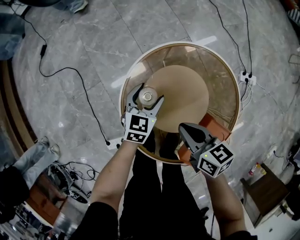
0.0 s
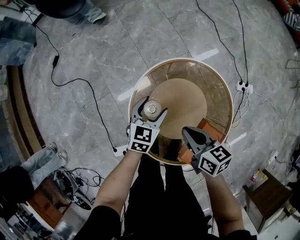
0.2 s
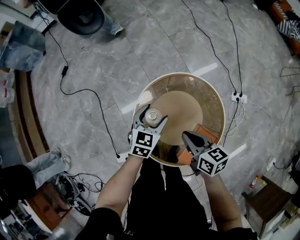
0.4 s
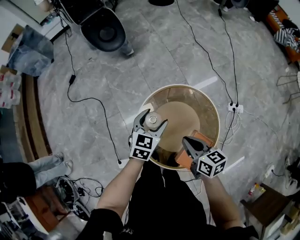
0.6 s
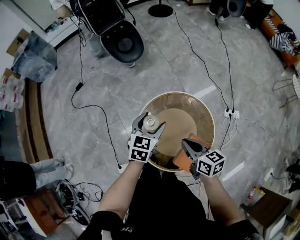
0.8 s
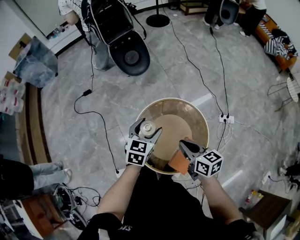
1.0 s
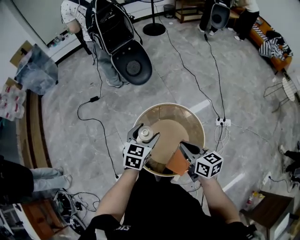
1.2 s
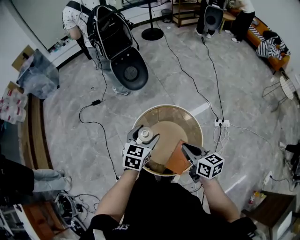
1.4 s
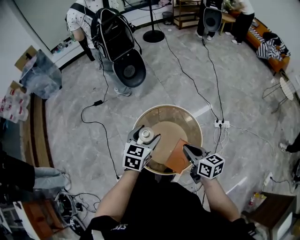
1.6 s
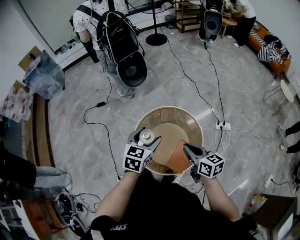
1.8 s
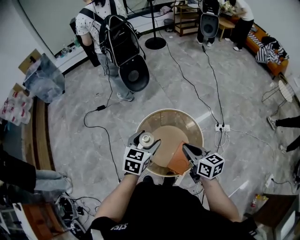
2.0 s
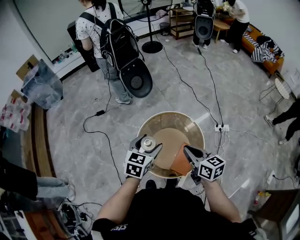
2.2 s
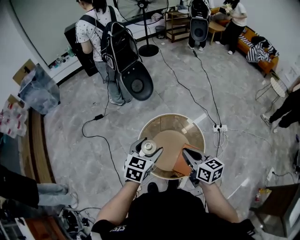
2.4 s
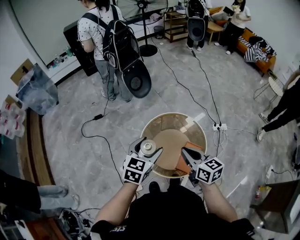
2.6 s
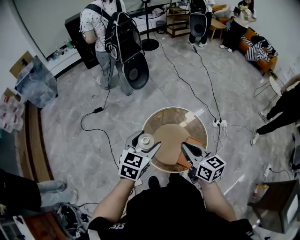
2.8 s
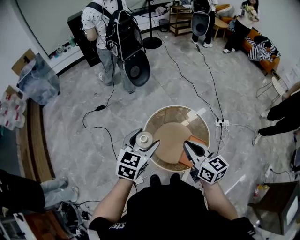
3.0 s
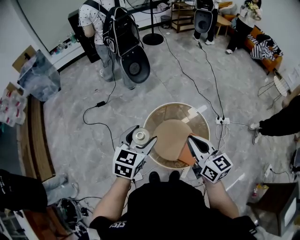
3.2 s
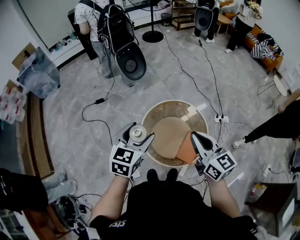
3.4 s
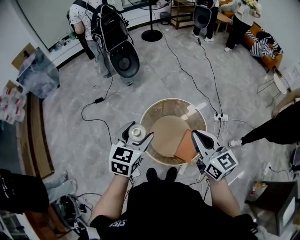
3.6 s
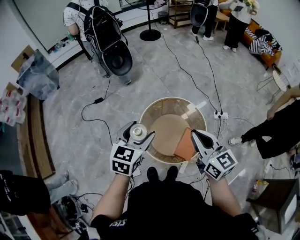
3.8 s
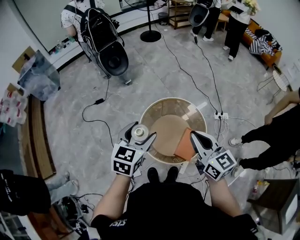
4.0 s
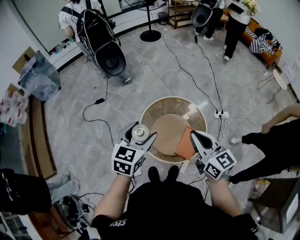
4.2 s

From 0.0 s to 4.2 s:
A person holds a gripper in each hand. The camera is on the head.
From 0.0 s to 1.4 s: Both grippers move upward, approximately 40 cm.
From 1.4 s to 2.8 s: The right gripper is displaced to the left, upward and backward by roughly 20 cm, while the left gripper travels to the left, backward and upward by some 20 cm.
From 2.8 s to 4.2 s: The right gripper goes some 5 cm to the right.

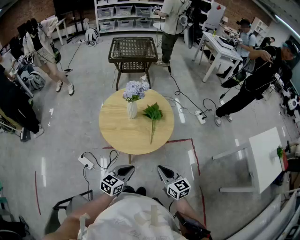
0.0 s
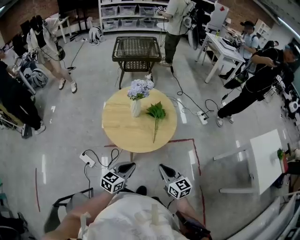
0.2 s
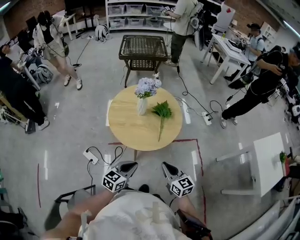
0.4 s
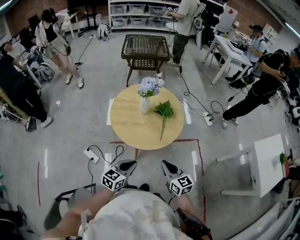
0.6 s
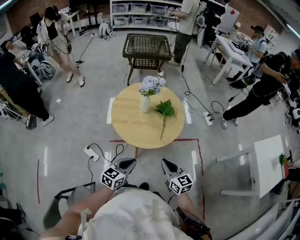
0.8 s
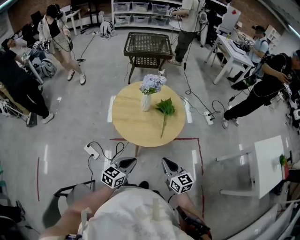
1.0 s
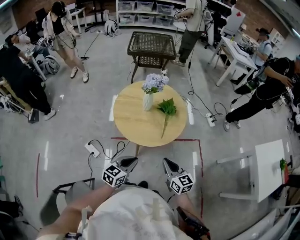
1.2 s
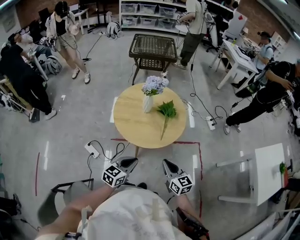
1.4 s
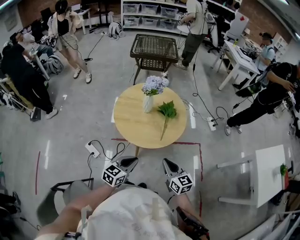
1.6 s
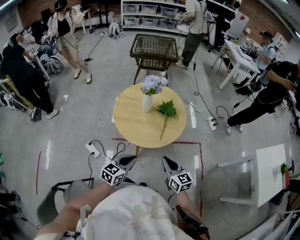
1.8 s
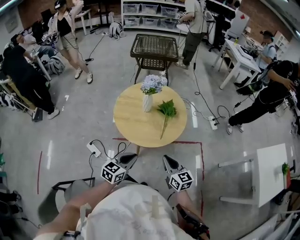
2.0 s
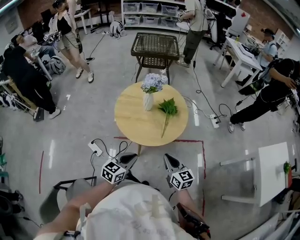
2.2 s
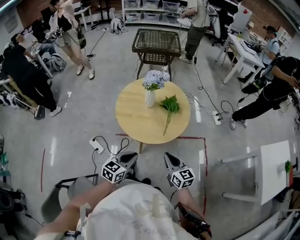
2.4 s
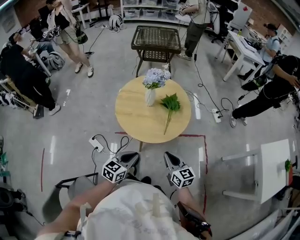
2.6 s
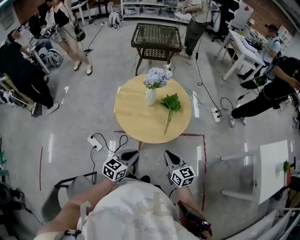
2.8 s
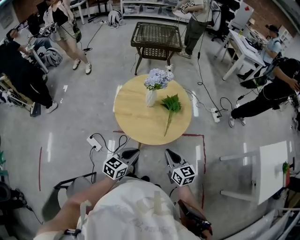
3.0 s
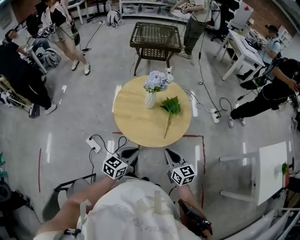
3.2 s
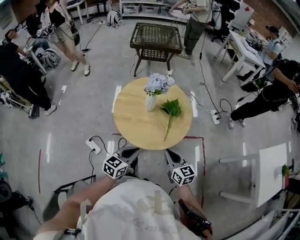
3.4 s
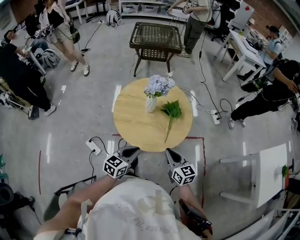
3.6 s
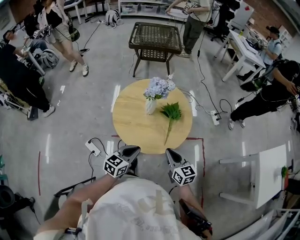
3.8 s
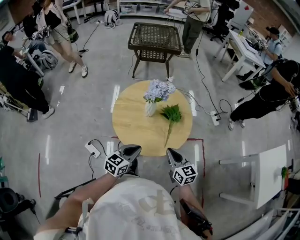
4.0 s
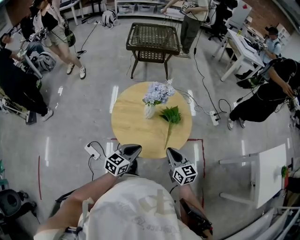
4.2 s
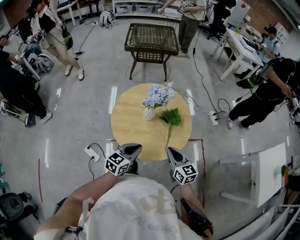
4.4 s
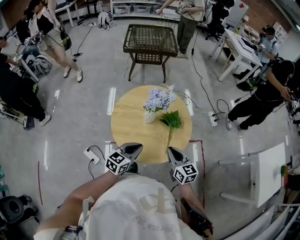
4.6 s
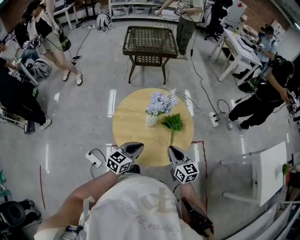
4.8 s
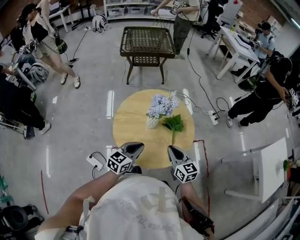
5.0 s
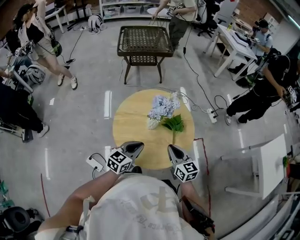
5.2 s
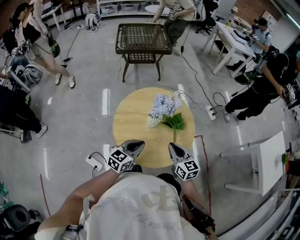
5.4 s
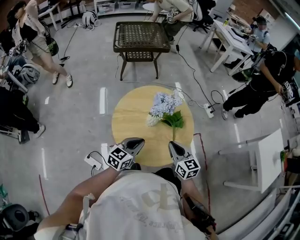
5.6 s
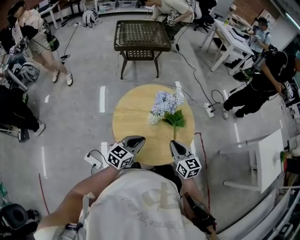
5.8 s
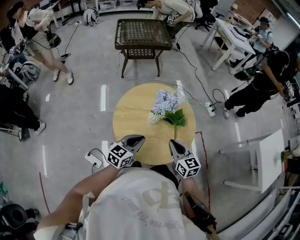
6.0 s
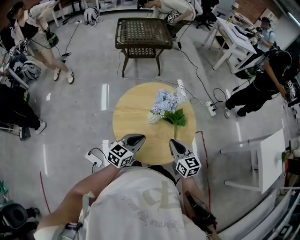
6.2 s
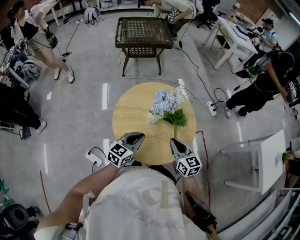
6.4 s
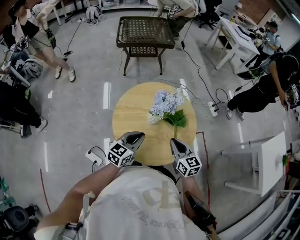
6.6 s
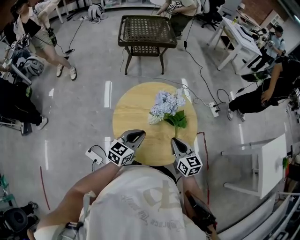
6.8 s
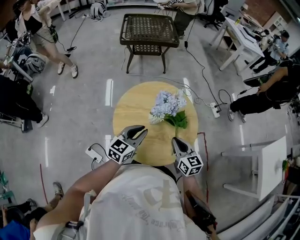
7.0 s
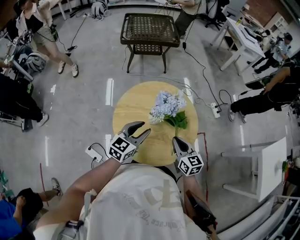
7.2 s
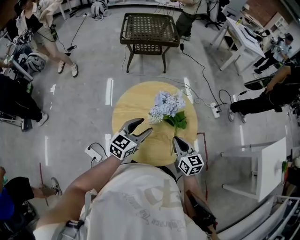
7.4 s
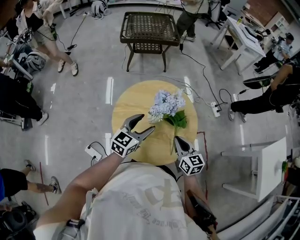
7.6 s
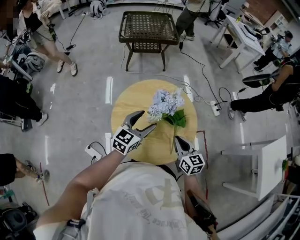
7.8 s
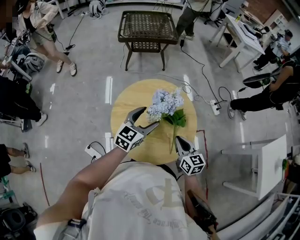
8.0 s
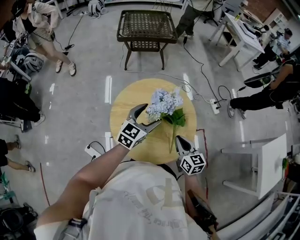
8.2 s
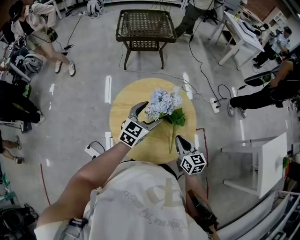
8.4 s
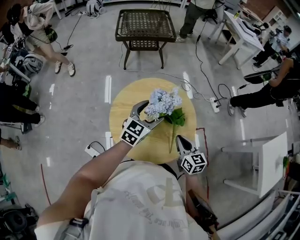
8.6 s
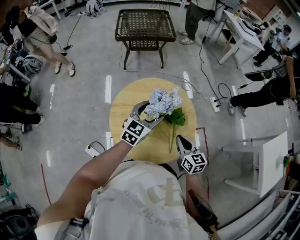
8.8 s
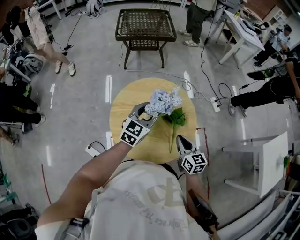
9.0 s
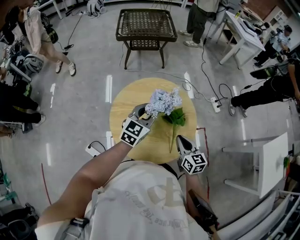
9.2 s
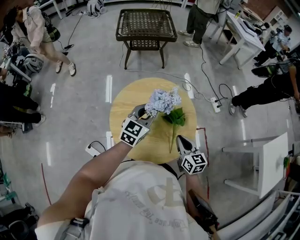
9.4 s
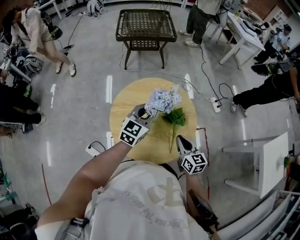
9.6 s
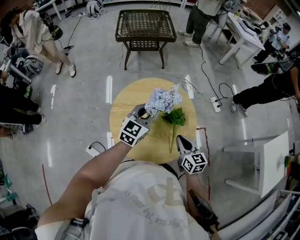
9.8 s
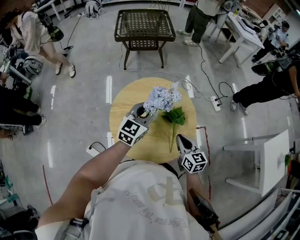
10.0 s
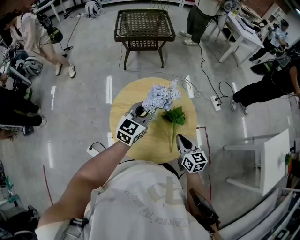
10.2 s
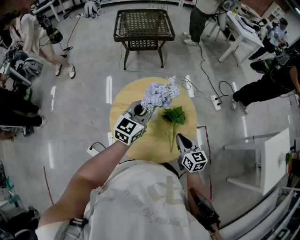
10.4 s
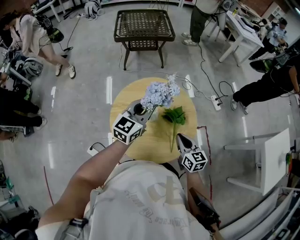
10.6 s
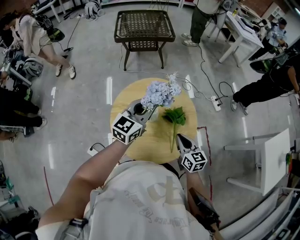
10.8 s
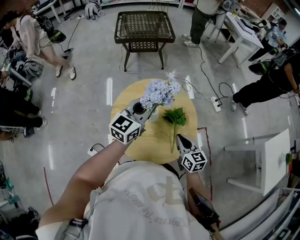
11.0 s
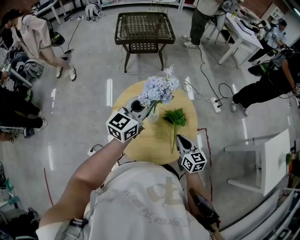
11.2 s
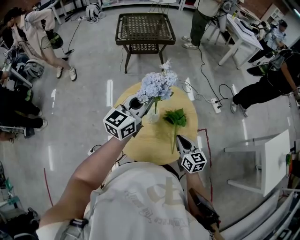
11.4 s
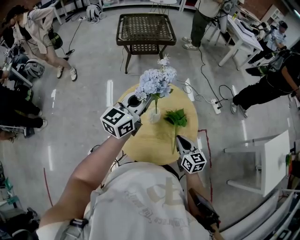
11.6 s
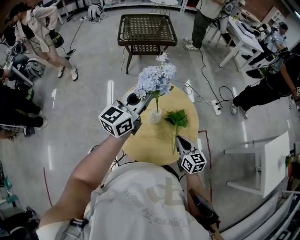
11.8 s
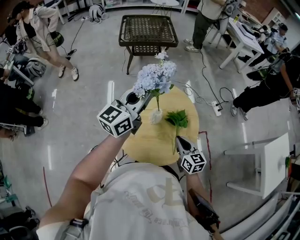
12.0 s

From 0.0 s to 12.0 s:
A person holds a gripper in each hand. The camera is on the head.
From 0.0 s to 1.6 s: The grippers move only a little.
From 1.6 s to 3.0 s: The right gripper heads forward, covering approximately 5 cm; the left gripper moves about 5 cm.
From 3.0 s to 4.4 s: Both grippers travel together forward, approximately 15 cm.
From 4.4 s to 6.0 s: The right gripper is displaced to the left and forward by some 10 cm. Meanwhile the left gripper heads forward and to the left, covering approximately 10 cm.
From 6.0 s to 7.6 s: The right gripper shifts by roughly 5 cm. Meanwhile the left gripper goes approximately 10 cm forward, and opens its fingers.
From 7.6 s to 9.0 s: The left gripper is displaced forward by roughly 5 cm.
From 9.0 s to 10.4 s: The left gripper closes up.
From 10.4 s to 12.0 s: The left gripper is displaced upward by roughly 10 cm.

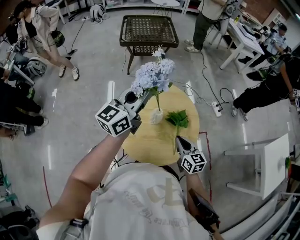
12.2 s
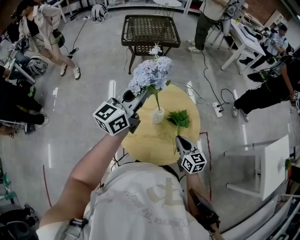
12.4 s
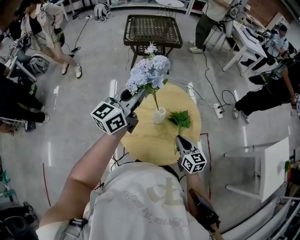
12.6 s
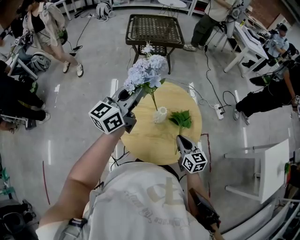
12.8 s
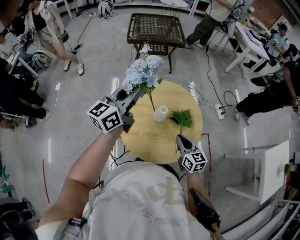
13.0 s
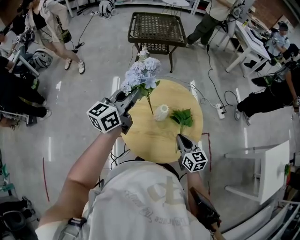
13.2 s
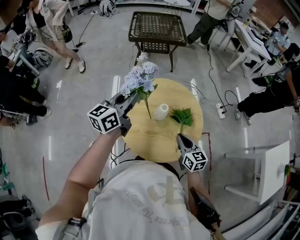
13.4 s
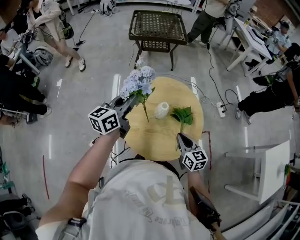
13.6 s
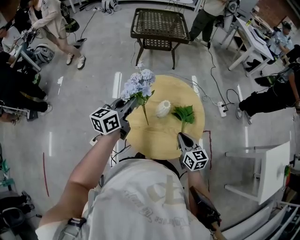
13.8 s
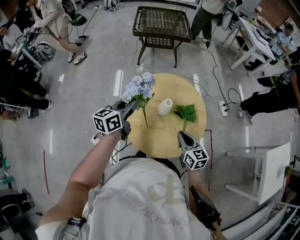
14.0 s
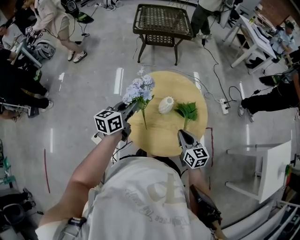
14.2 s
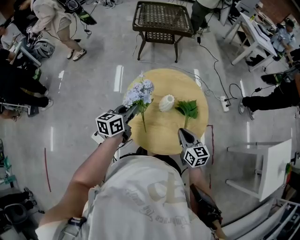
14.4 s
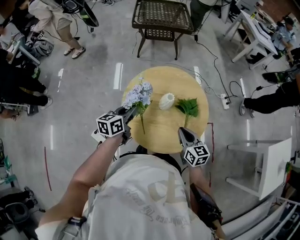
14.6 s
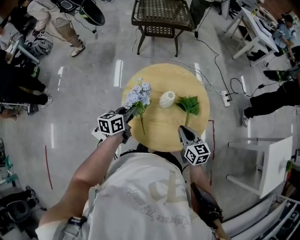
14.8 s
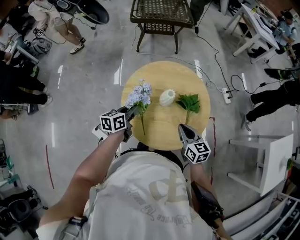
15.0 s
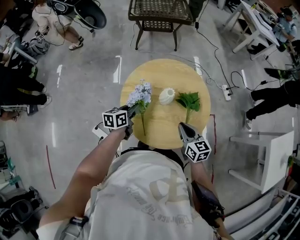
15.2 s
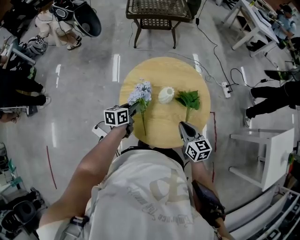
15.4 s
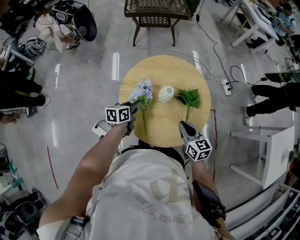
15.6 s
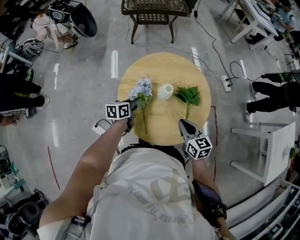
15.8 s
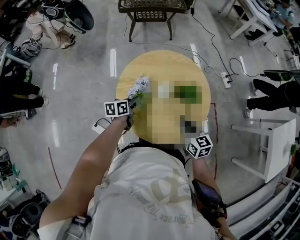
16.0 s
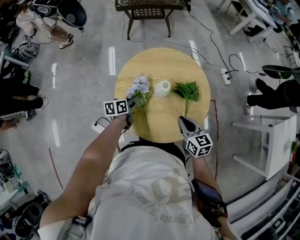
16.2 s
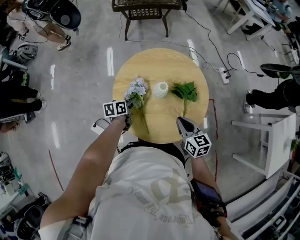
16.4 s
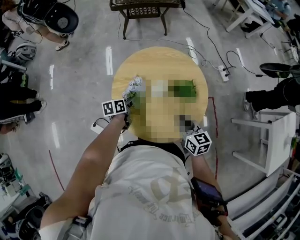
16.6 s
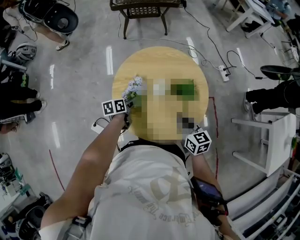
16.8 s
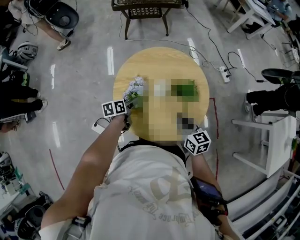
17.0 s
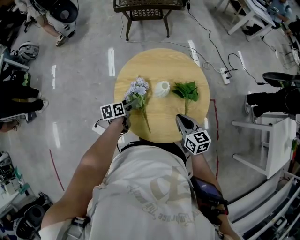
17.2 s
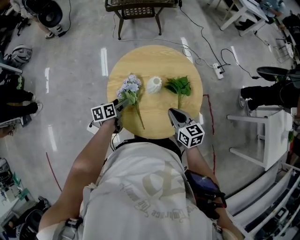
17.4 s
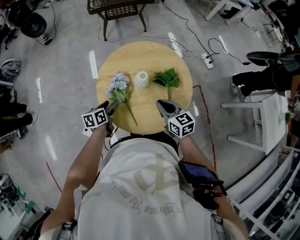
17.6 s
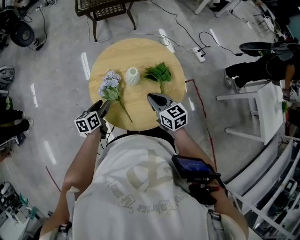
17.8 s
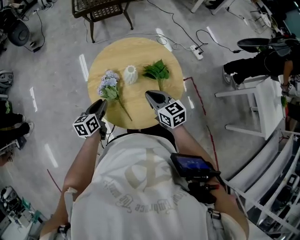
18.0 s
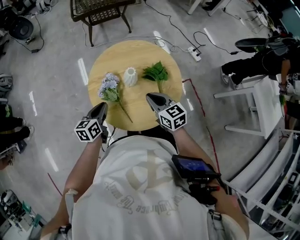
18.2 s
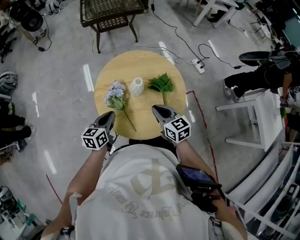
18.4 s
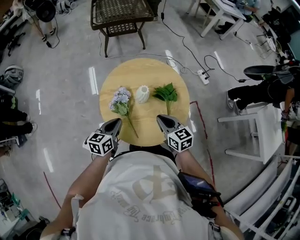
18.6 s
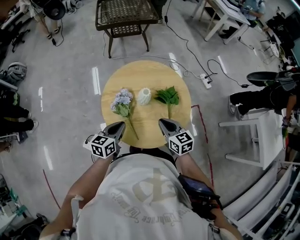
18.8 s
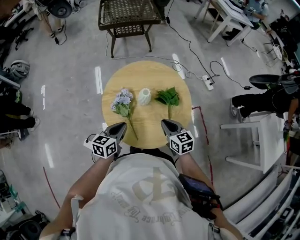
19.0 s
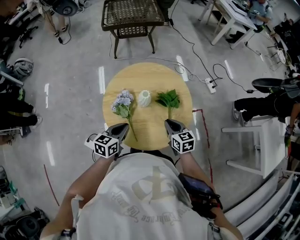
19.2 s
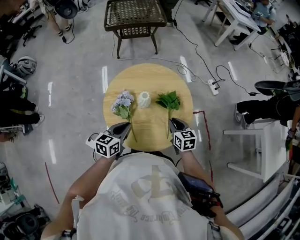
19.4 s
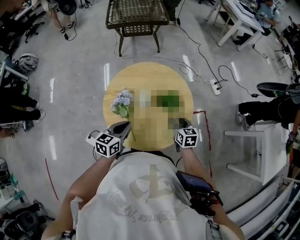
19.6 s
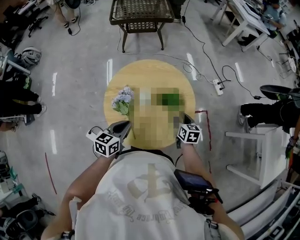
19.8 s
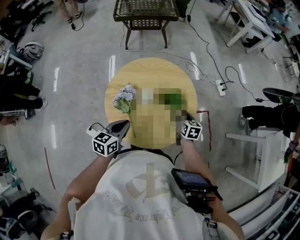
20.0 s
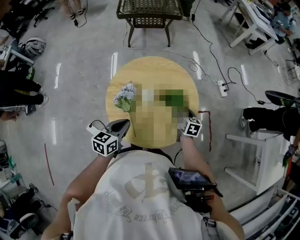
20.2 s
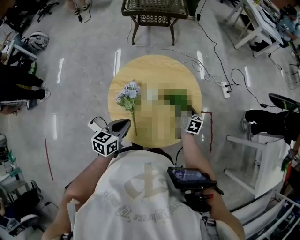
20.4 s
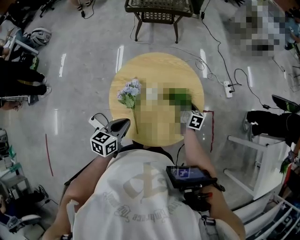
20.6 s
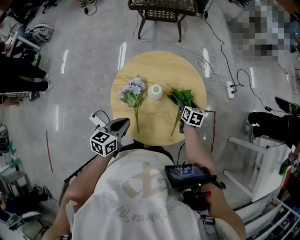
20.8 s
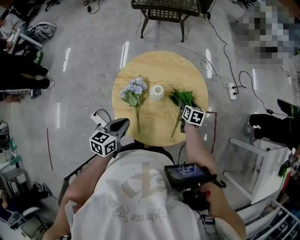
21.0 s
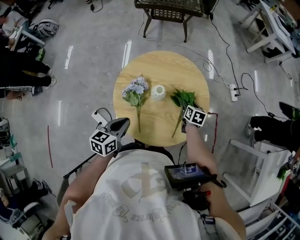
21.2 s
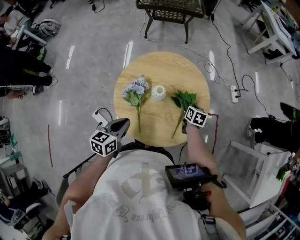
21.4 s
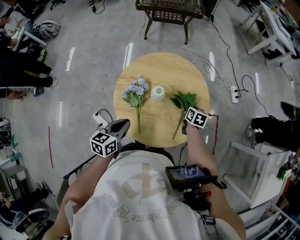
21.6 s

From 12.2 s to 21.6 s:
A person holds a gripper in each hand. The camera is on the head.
From 12.2 s to 13.8 s: The left gripper goes roughly 15 cm downward and to the left, and turns by roughly 20 degrees.
From 13.8 s to 15.4 s: The left gripper travels downward by some 20 cm, and turns by some 30 degrees.
From 15.4 s to 17.0 s: The left gripper is displaced downward by some 10 cm, and opens its fingers.
From 17.0 s to 18.4 s: The left gripper is displaced upward and backward by roughly 15 cm, swivels some 30 degrees, and closes its fingers.
From 18.4 s to 20.0 s: The right gripper shifts roughly 20 cm to the right, downward and forward, changes its angle by about 20 degrees, and opens up. Meanwhile the left gripper goes some 5 cm to the right.
From 20.0 s to 21.6 s: The right gripper shifts roughly 10 cm forward and downward, and closes up.
